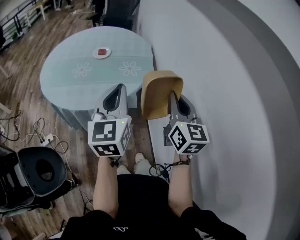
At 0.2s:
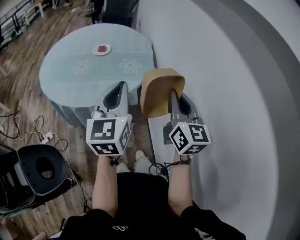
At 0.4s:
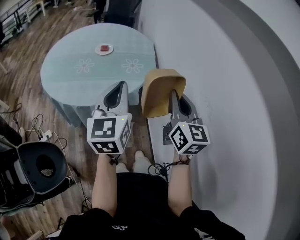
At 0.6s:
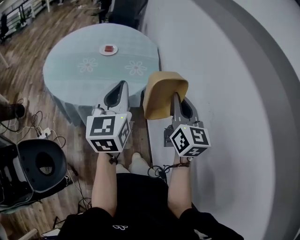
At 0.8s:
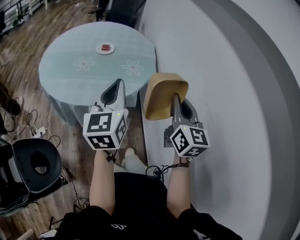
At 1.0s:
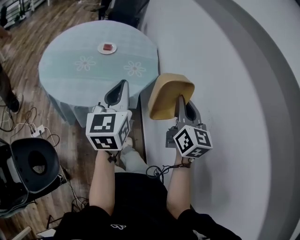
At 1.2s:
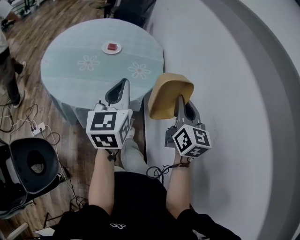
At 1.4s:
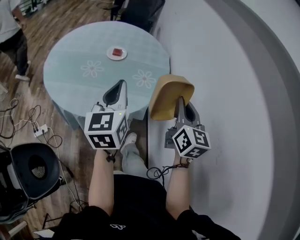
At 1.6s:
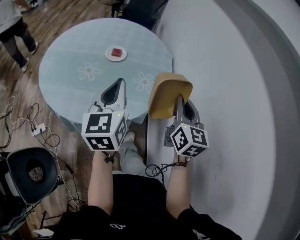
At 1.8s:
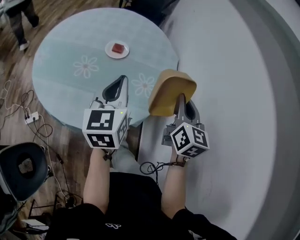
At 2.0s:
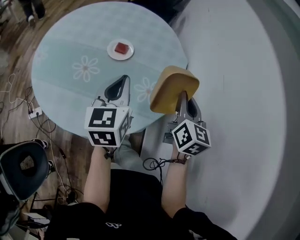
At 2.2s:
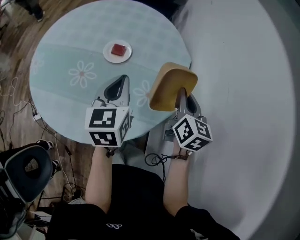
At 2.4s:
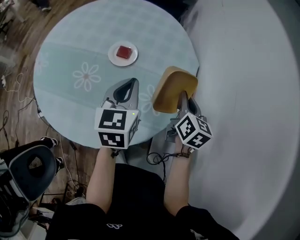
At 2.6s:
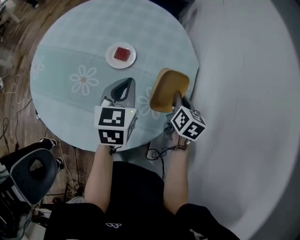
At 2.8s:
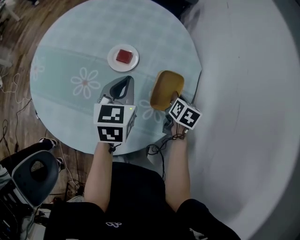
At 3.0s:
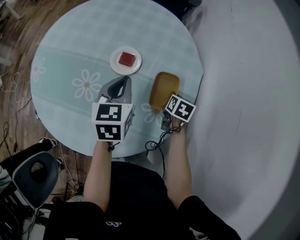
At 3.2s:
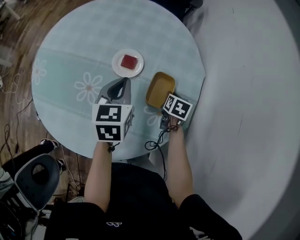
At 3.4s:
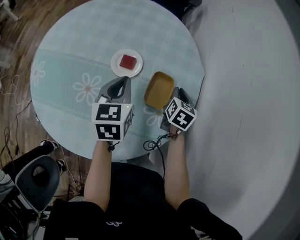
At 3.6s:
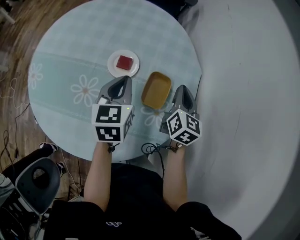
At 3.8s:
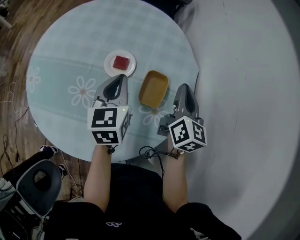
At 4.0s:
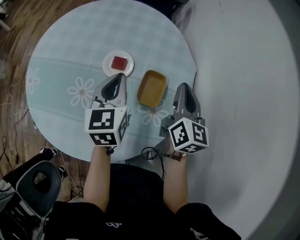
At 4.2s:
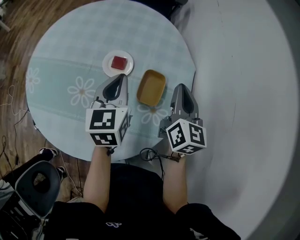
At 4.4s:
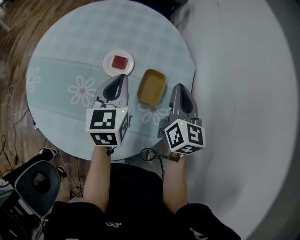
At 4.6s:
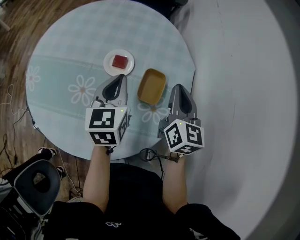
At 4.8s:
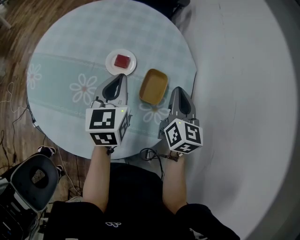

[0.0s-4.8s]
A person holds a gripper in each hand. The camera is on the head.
0.0s to 1.6s: The left gripper goes approximately 25 cm forward and to the left. Meanwhile the right gripper heads forward, covering about 20 cm.
1.6s to 3.2s: Both grippers move forward and downward, roughly 40 cm. The right gripper angles its fingers downward, by some 50 degrees, while the left gripper rotates roughly 30 degrees.
3.2s to 4.8s: The right gripper heads upward, covering roughly 20 cm, and tilts its fingers roughly 40 degrees upward. The left gripper moves some 5 cm.

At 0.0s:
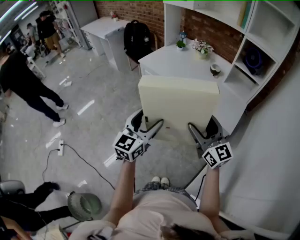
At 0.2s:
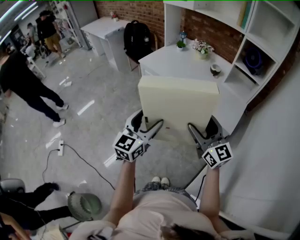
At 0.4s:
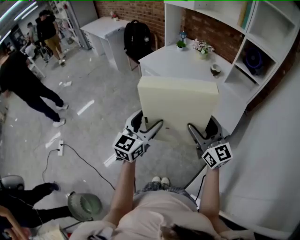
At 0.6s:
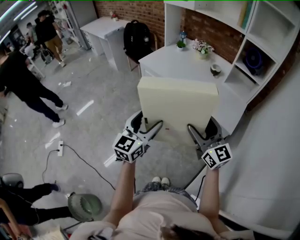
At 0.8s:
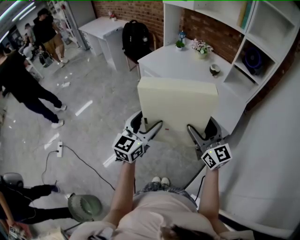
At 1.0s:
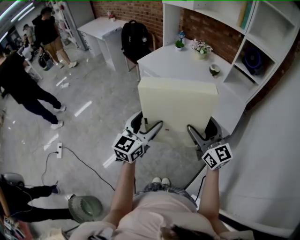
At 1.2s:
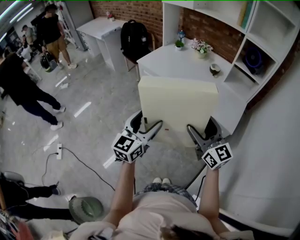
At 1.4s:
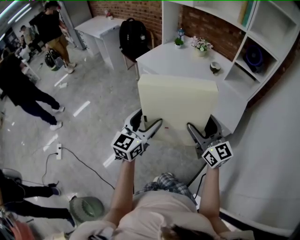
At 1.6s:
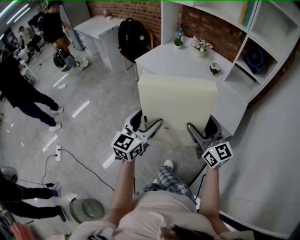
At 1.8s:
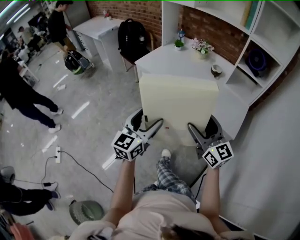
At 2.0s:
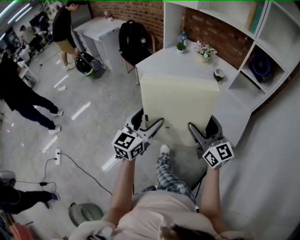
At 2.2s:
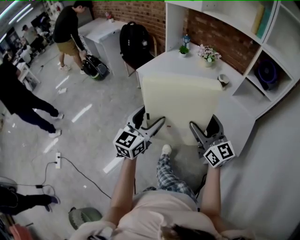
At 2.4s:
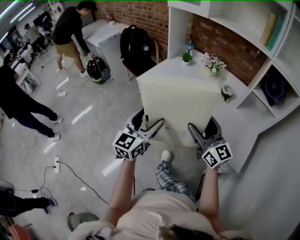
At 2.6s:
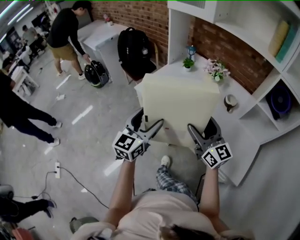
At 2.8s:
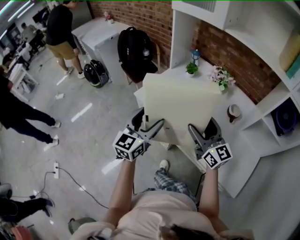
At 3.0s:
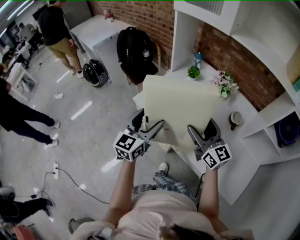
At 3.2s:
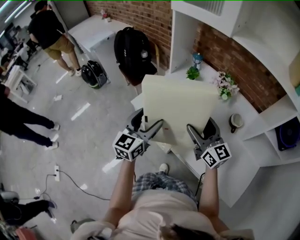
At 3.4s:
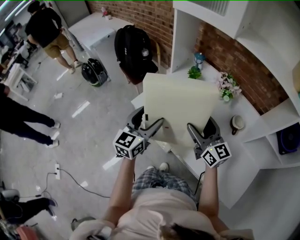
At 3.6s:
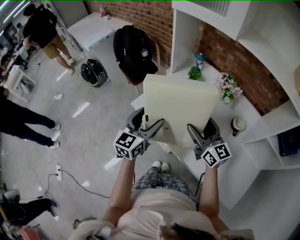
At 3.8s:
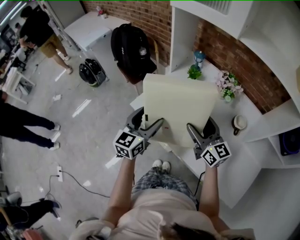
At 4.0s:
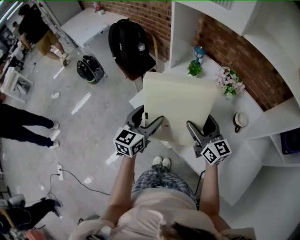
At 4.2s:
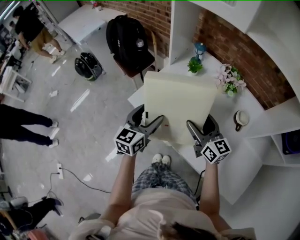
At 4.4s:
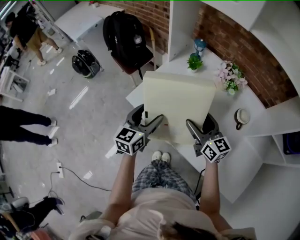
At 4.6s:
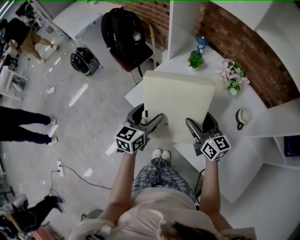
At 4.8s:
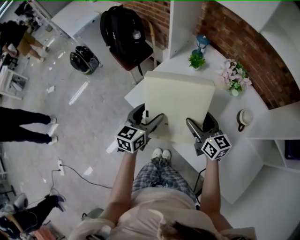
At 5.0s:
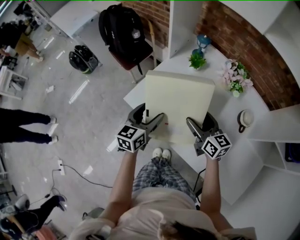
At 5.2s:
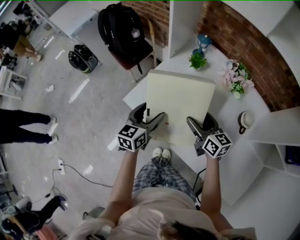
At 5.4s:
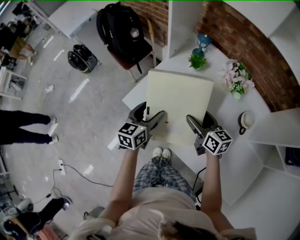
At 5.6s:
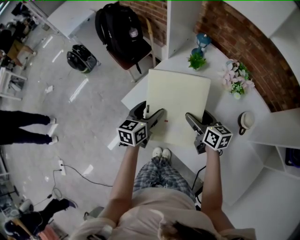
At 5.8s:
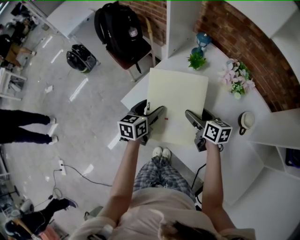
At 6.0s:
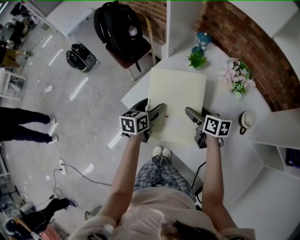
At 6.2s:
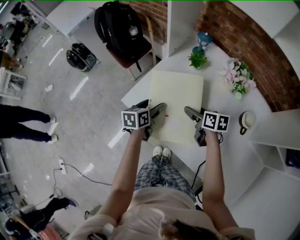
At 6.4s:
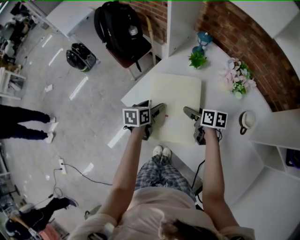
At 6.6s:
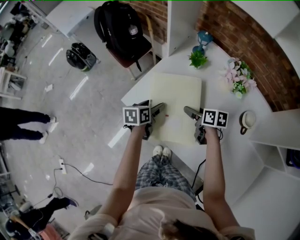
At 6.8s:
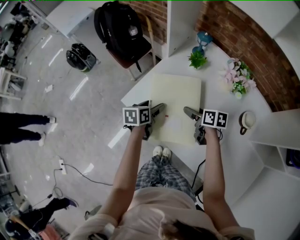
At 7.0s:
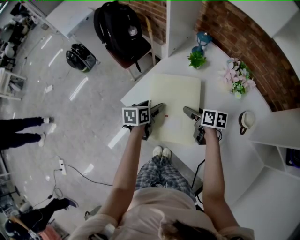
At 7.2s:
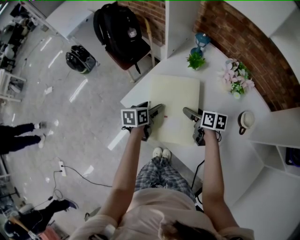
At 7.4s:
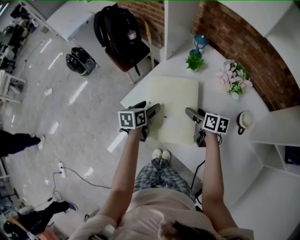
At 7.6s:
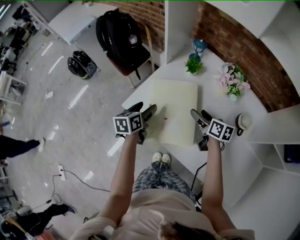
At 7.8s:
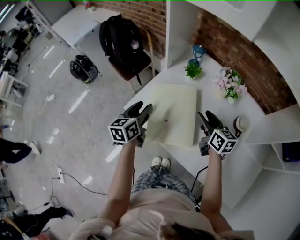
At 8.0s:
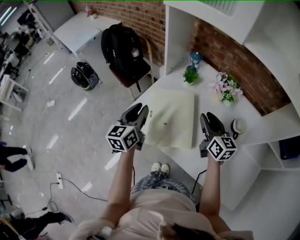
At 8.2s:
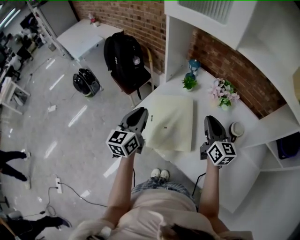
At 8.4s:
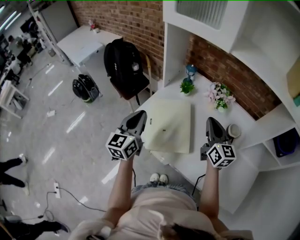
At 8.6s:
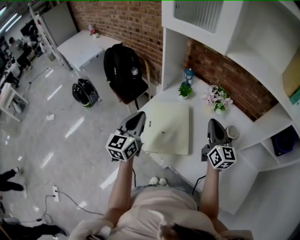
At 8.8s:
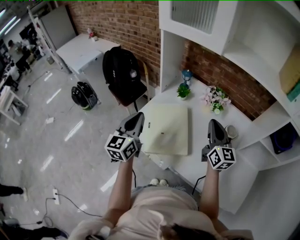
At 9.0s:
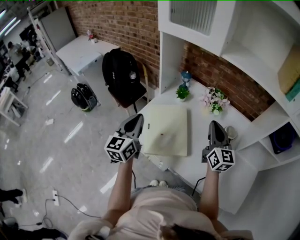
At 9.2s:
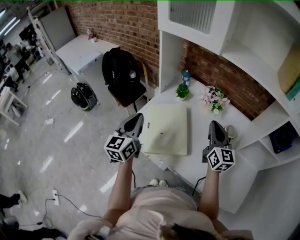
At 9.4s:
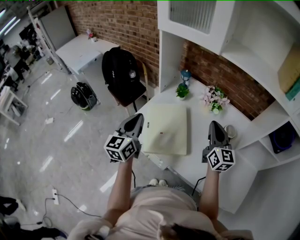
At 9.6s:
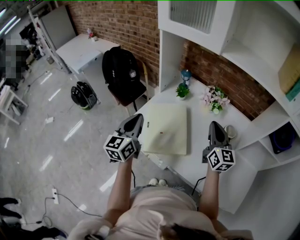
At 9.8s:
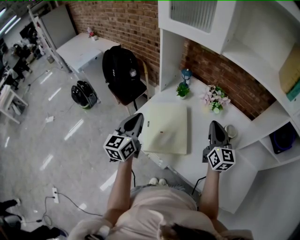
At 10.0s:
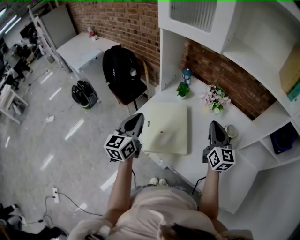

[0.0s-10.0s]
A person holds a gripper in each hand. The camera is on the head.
0.0s to 1.4s: There are only small adjustments of the grippers.
1.4s to 2.8s: Both grippers are carried forward, about 50 cm.
2.8s to 4.2s: Both grippers move forward and downward, some 20 cm.
4.2s to 5.8s: Both grippers move downward and forward, approximately 15 cm. The left gripper swivels approximately 20 degrees. Meanwhile the right gripper turns by approximately 30 degrees.
5.8s to 7.2s: The grippers both shift downward by some 5 cm.
7.2s to 8.6s: Both grippers move upward, roughly 30 cm. The right gripper tips its fingers upward by some 40 degrees, and closes its fingers. The left gripper tilts its fingers approximately 40 degrees upward, and closes.
8.6s to 10.0s: There are only small adjustments of the grippers.

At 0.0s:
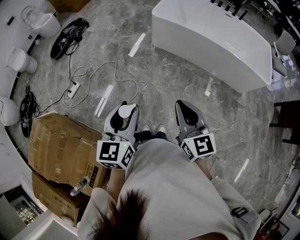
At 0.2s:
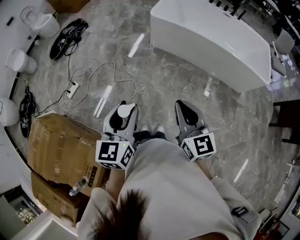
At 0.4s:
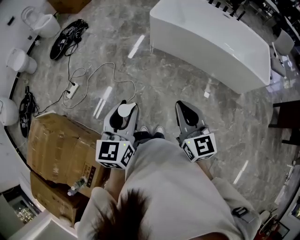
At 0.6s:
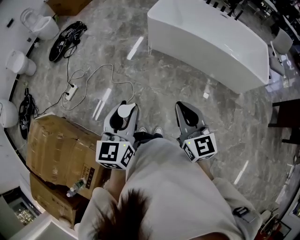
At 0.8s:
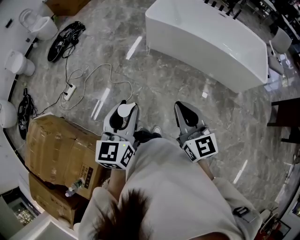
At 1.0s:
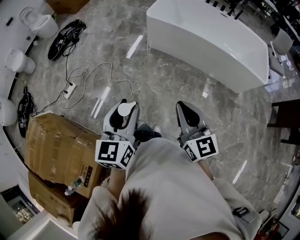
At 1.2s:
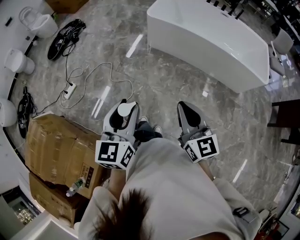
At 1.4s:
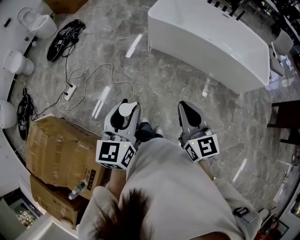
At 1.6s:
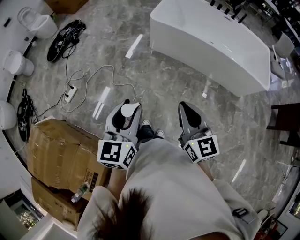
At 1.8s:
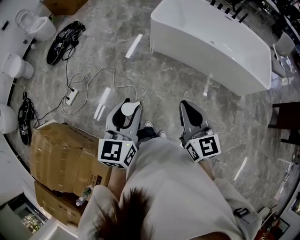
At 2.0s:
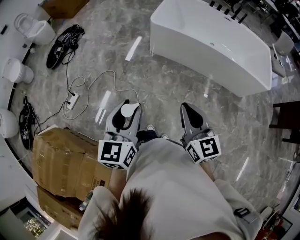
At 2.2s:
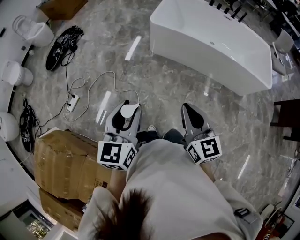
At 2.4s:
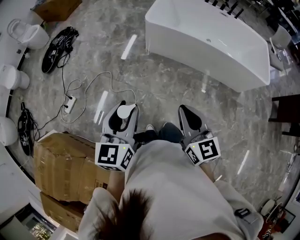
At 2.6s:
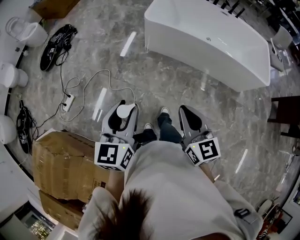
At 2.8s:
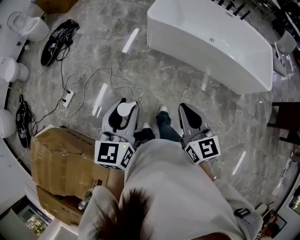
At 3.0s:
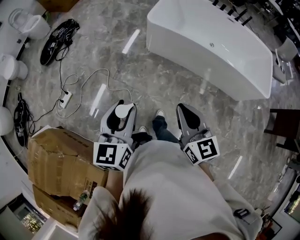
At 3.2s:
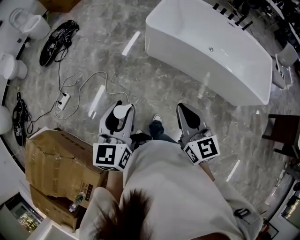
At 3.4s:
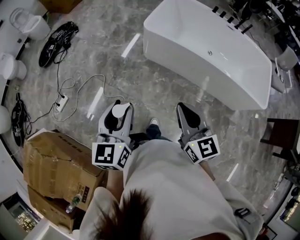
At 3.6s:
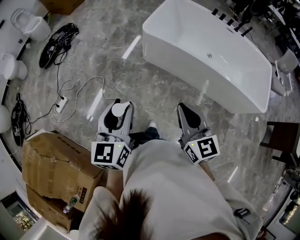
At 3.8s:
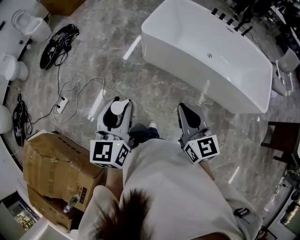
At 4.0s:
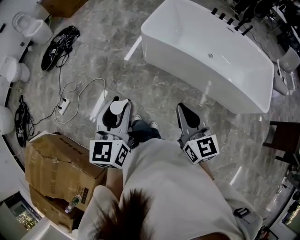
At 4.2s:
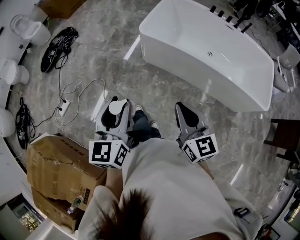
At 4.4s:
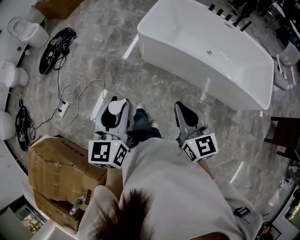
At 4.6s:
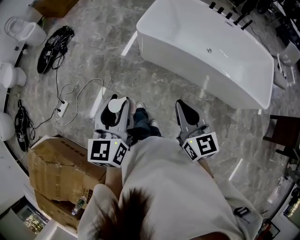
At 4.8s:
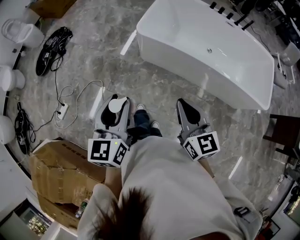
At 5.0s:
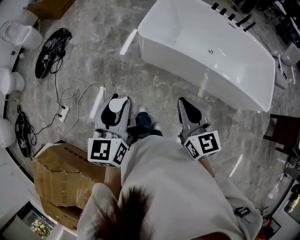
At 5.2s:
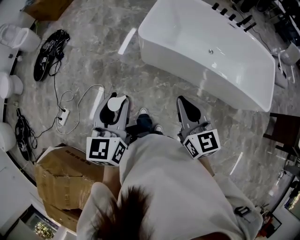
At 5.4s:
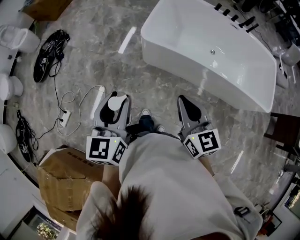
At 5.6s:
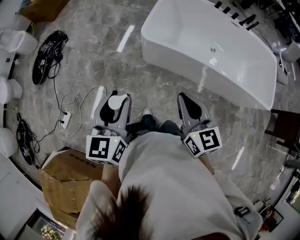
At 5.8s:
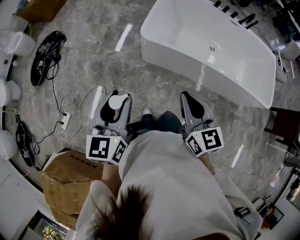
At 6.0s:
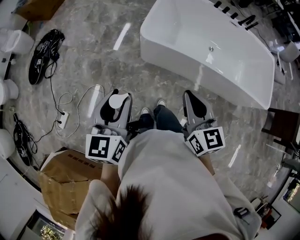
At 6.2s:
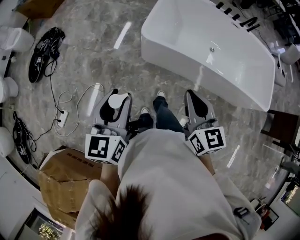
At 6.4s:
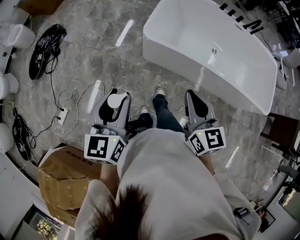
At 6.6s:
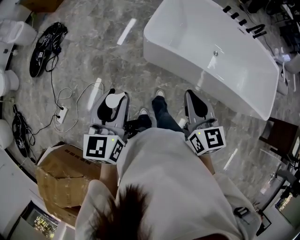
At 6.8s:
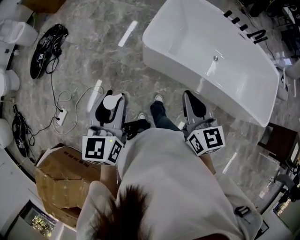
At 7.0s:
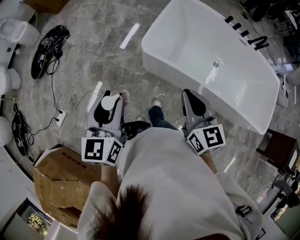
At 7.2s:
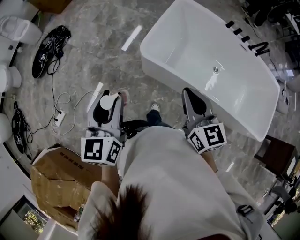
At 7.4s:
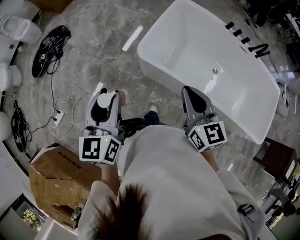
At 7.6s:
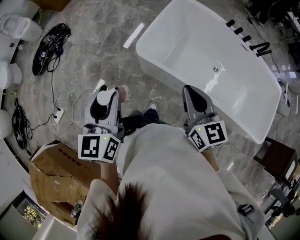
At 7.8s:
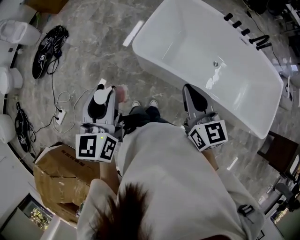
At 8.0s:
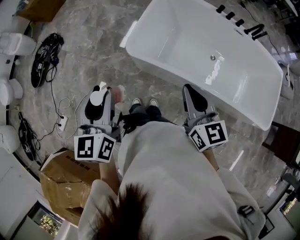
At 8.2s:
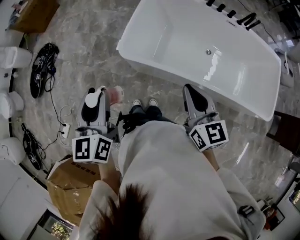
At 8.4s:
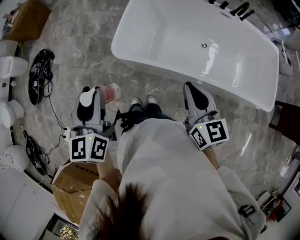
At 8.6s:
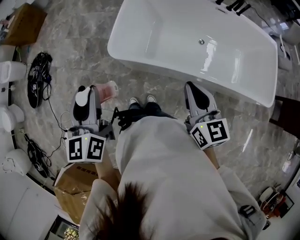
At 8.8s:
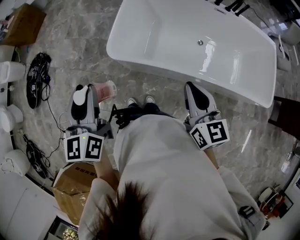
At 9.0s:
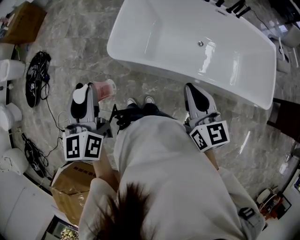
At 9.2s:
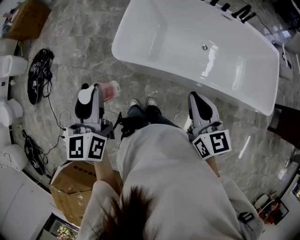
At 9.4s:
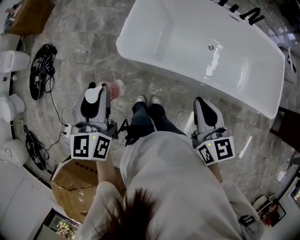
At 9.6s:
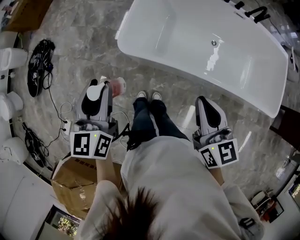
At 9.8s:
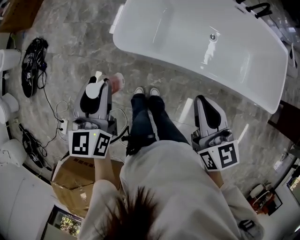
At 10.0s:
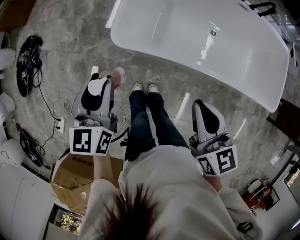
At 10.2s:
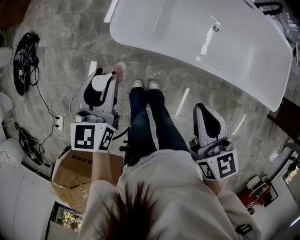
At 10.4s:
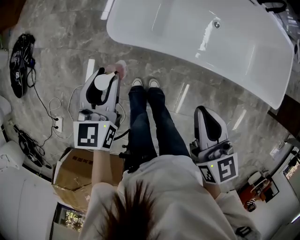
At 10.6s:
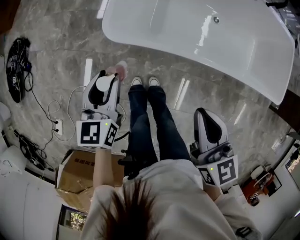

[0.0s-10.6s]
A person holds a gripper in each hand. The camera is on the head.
0.0s to 1.6s: The left gripper is displaced forward by some 5 cm. The right gripper moves about 5 cm.
1.6s to 3.0s: The grippers both shift forward by roughly 15 cm.
3.0s to 4.6s: The grippers both shift forward and to the right by some 15 cm.
4.6s to 6.0s: The two grippers go about 20 cm forward and to the left.
6.0s to 7.6s: The grippers both shift forward and to the right by approximately 20 cm.
7.6s to 9.0s: The left gripper changes place by about 5 cm; the right gripper moves to the right, roughly 10 cm.
9.0s to 10.6s: The left gripper shifts approximately 25 cm downward, and changes its angle by roughly 20 degrees; the right gripper heads downward and to the left, covering approximately 15 cm.
